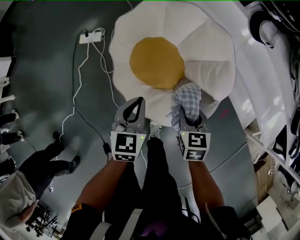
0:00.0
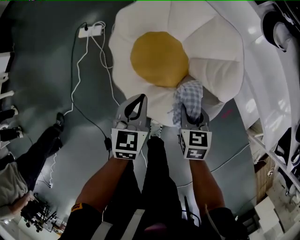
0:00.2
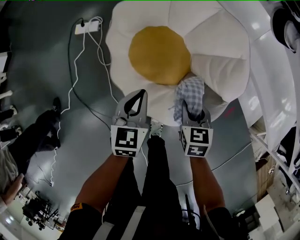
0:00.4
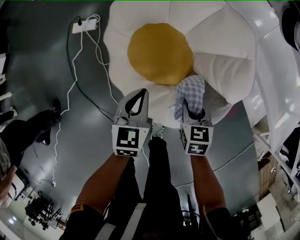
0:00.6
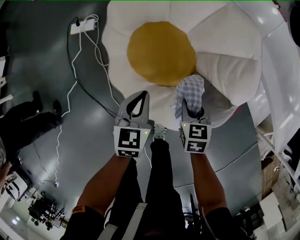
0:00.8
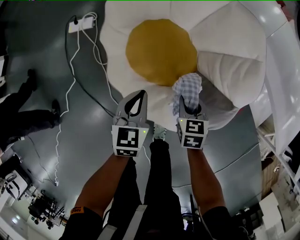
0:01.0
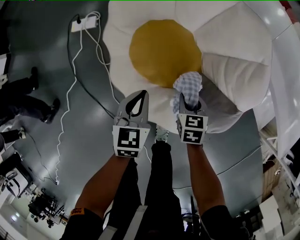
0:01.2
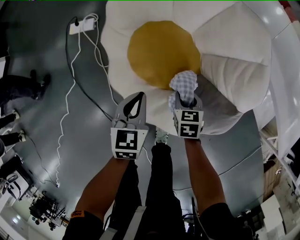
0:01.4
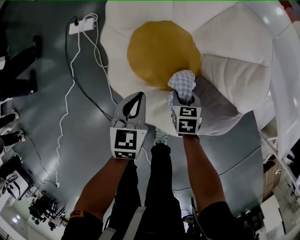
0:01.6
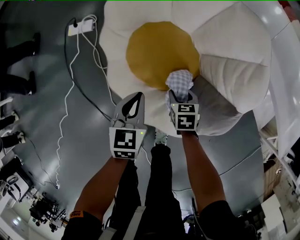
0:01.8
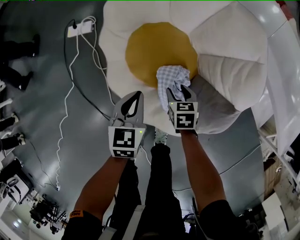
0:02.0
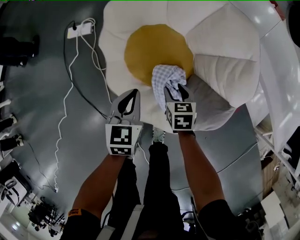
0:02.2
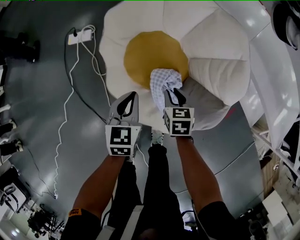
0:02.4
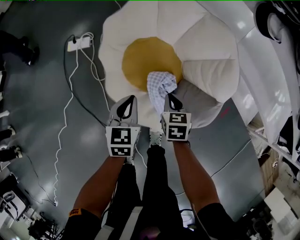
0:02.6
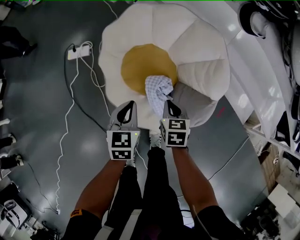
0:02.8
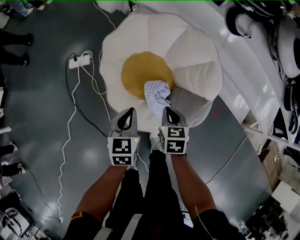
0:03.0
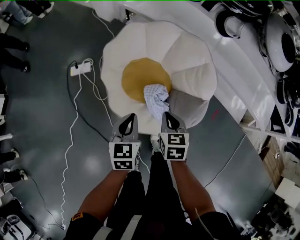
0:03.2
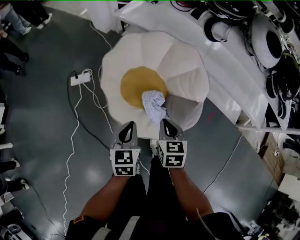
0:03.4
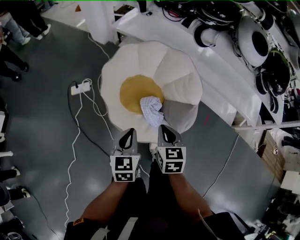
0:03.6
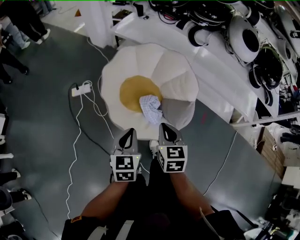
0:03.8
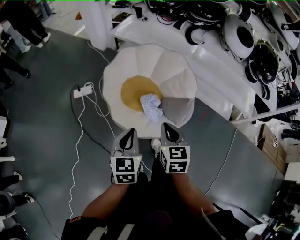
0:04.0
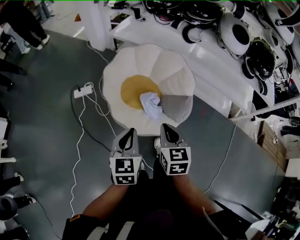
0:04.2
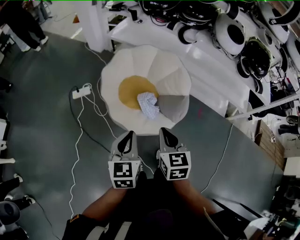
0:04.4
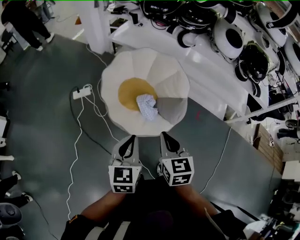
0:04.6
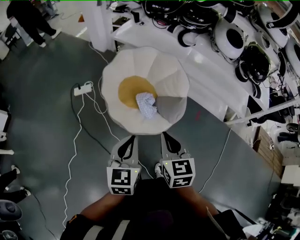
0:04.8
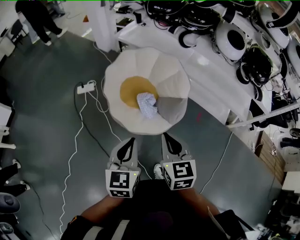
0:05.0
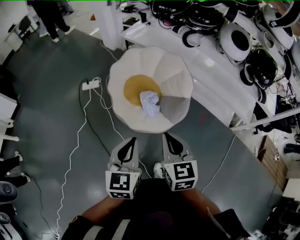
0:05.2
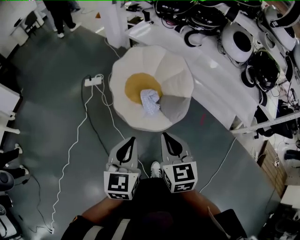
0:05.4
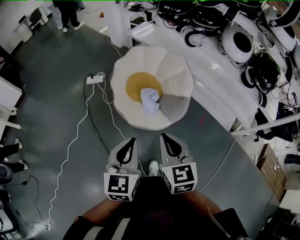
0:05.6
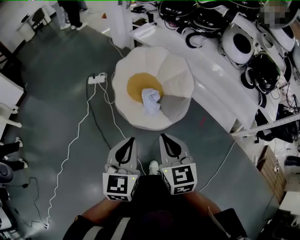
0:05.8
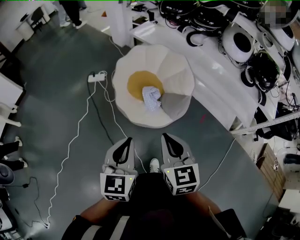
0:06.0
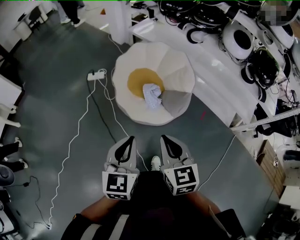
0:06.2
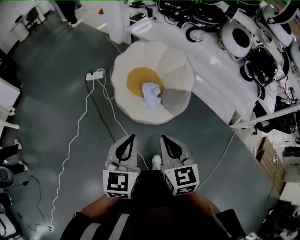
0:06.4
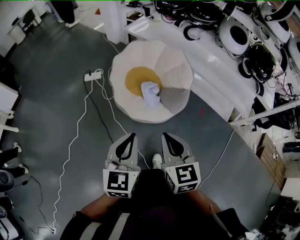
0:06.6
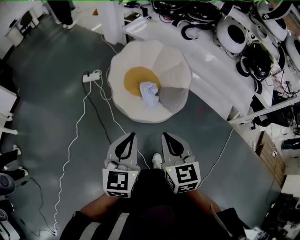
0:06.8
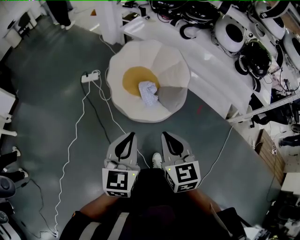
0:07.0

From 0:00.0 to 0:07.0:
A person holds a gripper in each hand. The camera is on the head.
From 0:00.0 to 0:01.4: Both grippers travel together downward, approximately 25 cm.
From 0:01.4 to 0:02.8: The grippers both shift upward by approximately 15 cm. The right gripper closes up.
From 0:02.8 to 0:04.2: The two grippers go approximately 35 cm upward and backward. The right gripper rotates some 20 degrees.
From 0:04.2 to 0:05.6: The left gripper moves backward, to the right and upward, approximately 25 cm, while the right gripper is displaced backward, upward and to the right by roughly 20 cm, and rotates about 20 degrees.
From 0:05.6 to 0:07.0: The left gripper is displaced to the left by about 5 cm, while the right gripper is displaced to the left and backward by approximately 5 cm.

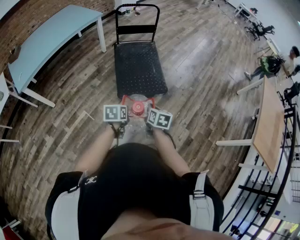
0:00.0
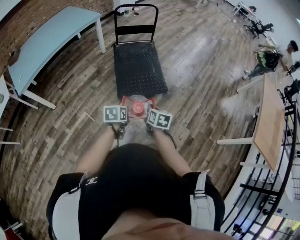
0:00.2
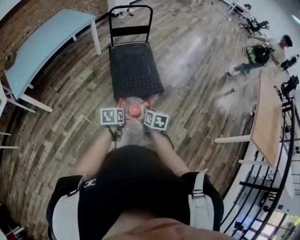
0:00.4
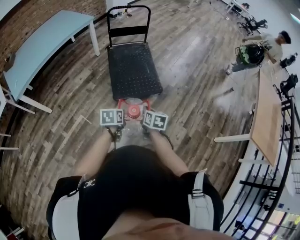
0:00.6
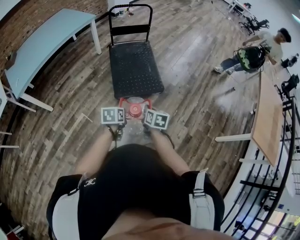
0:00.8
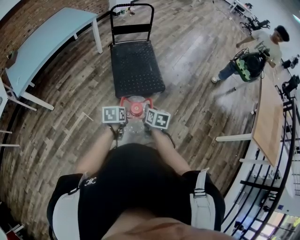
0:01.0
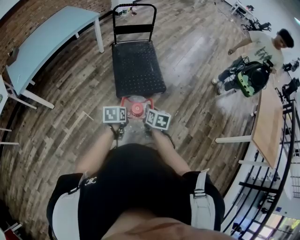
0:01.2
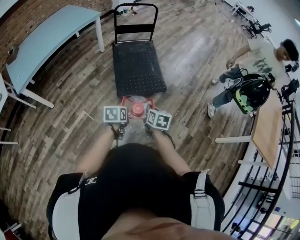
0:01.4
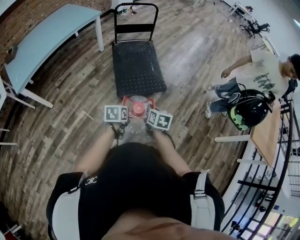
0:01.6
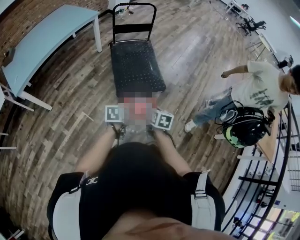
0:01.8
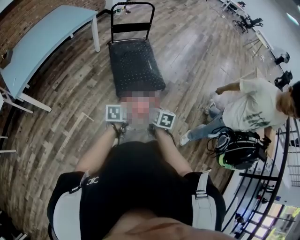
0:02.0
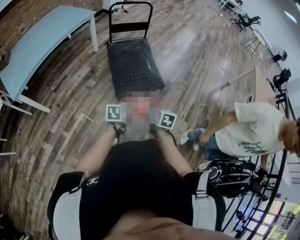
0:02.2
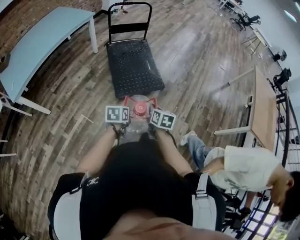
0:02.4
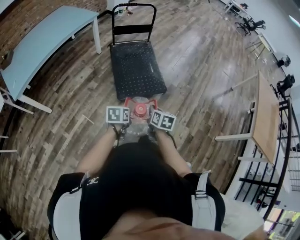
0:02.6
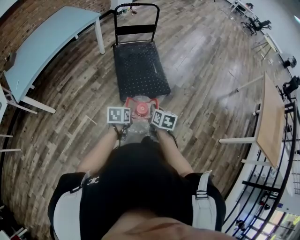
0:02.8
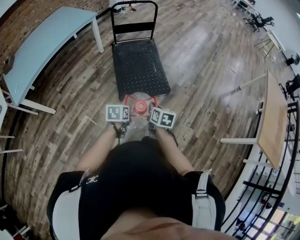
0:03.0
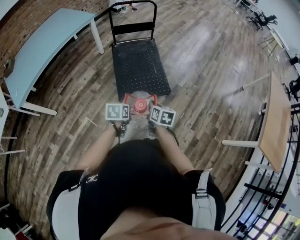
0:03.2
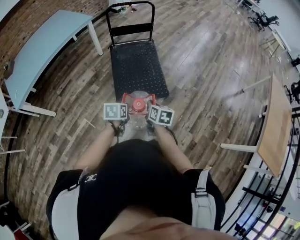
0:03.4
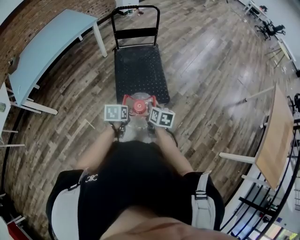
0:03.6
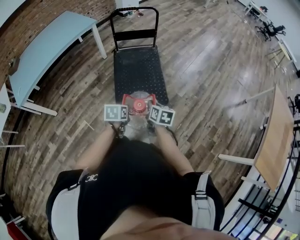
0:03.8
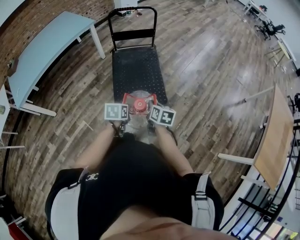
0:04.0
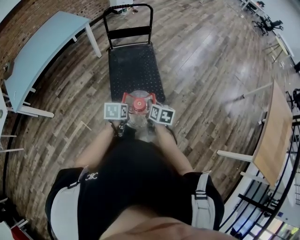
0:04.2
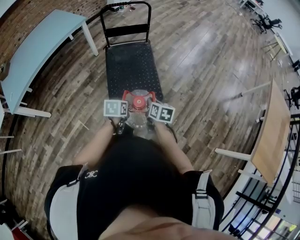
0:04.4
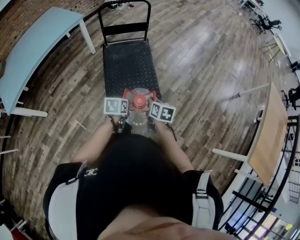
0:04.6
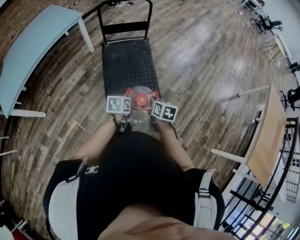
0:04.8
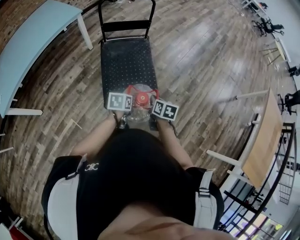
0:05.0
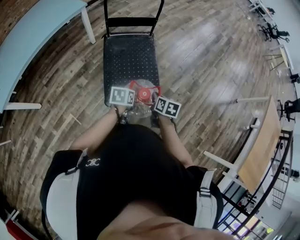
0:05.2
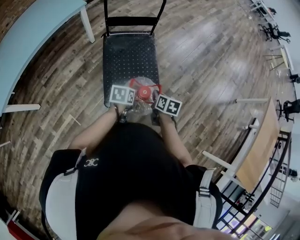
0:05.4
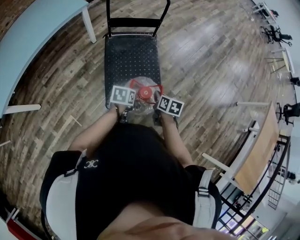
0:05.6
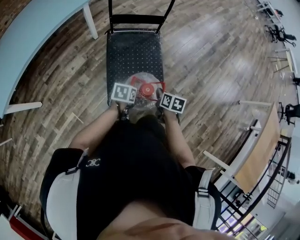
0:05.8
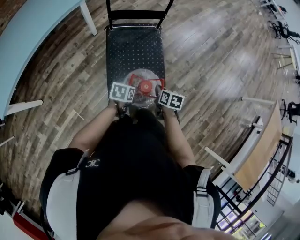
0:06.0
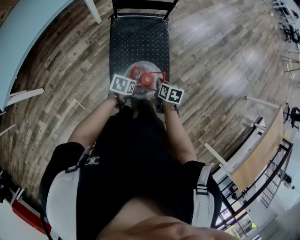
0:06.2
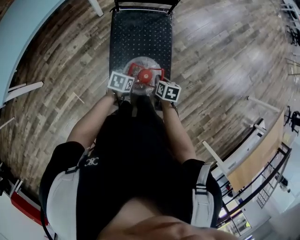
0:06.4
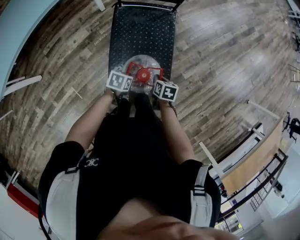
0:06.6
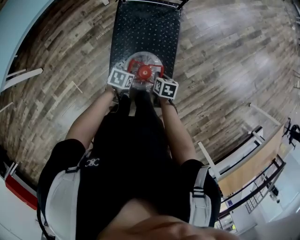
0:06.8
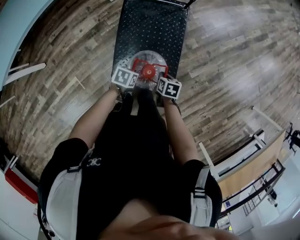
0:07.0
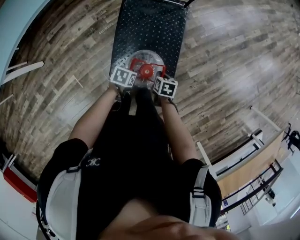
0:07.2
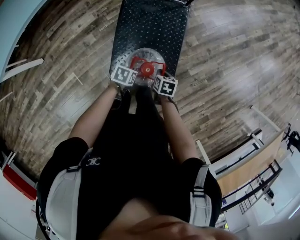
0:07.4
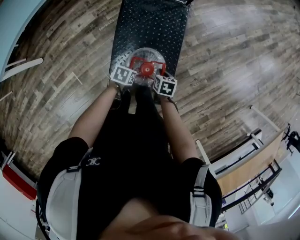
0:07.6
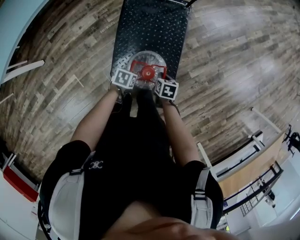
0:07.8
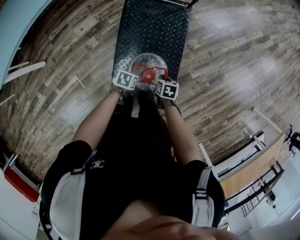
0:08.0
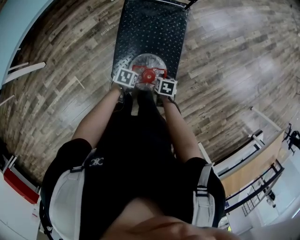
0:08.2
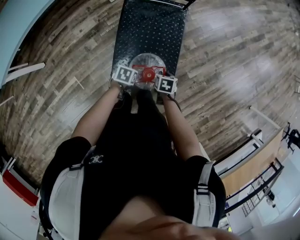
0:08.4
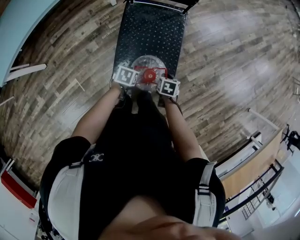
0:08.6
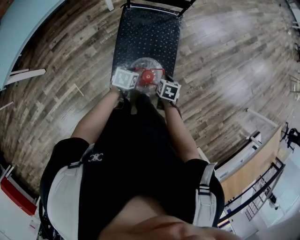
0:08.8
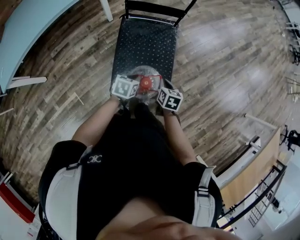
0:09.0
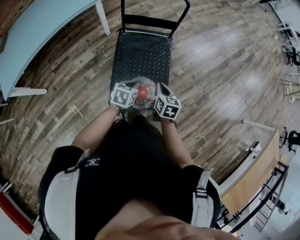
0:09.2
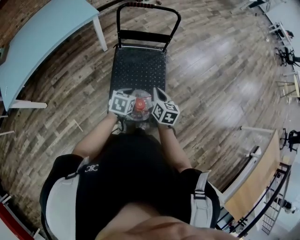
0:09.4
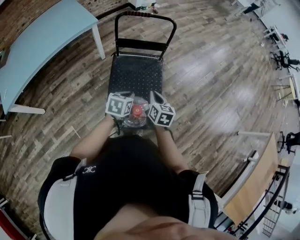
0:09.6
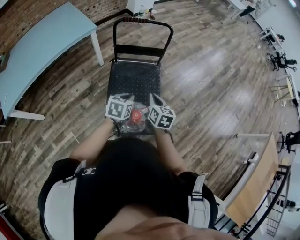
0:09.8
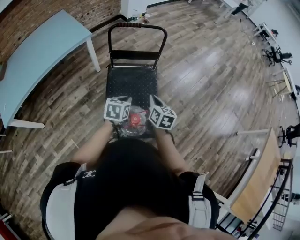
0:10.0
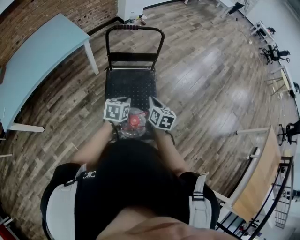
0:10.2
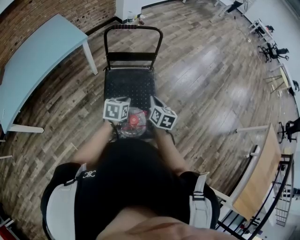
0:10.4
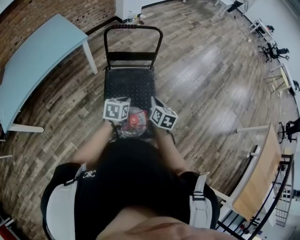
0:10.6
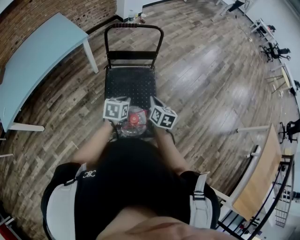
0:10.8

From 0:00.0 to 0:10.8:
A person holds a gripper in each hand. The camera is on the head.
From 0:00.0 to 0:01.6: The grippers move only a little.
From 0:01.6 to 0:03.0: Both grippers move forward, some 10 cm.
From 0:03.0 to 0:04.6: The two grippers go roughly 20 cm forward and to the right.
From 0:04.6 to 0:06.2: The right gripper shifts approximately 20 cm forward and downward, while the left gripper moves forward, downward and to the left, about 20 cm.
From 0:06.2 to 0:07.8: The grippers both shift downward by approximately 10 cm.
From 0:07.8 to 0:09.2: The grippers both shift upward by approximately 20 cm. The left gripper rotates some 30 degrees, and opens, then closes again. Meanwhile the right gripper turns by some 30 degrees.
From 0:09.2 to 0:10.8: Both grippers travel together upward, about 10 cm.

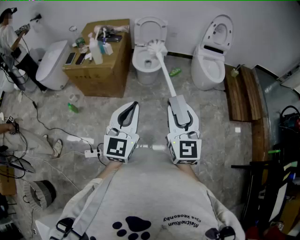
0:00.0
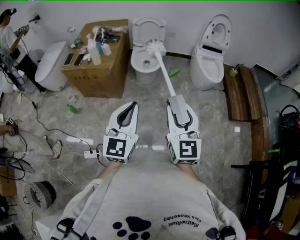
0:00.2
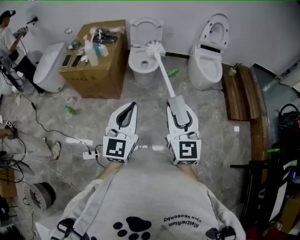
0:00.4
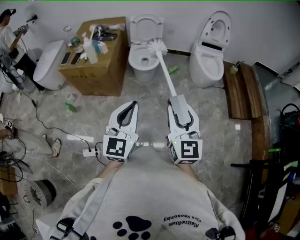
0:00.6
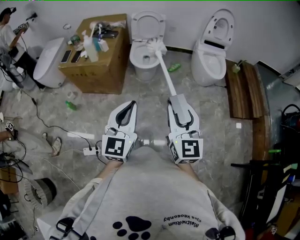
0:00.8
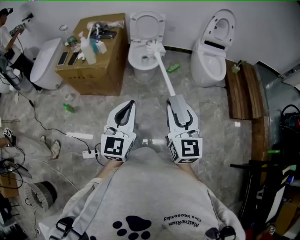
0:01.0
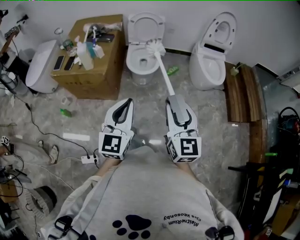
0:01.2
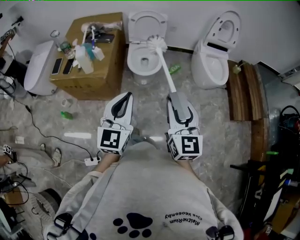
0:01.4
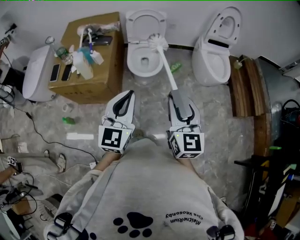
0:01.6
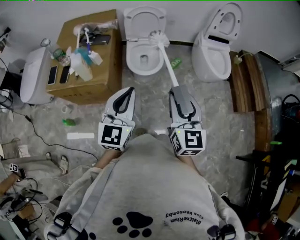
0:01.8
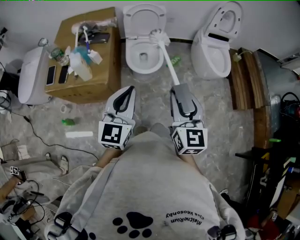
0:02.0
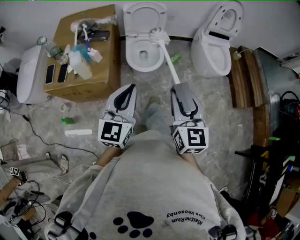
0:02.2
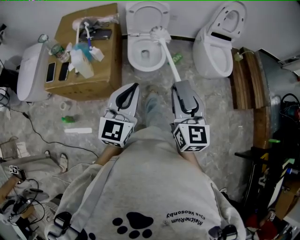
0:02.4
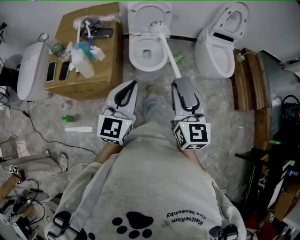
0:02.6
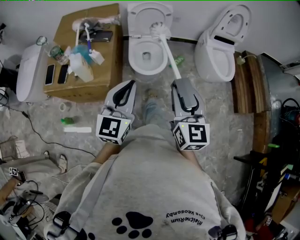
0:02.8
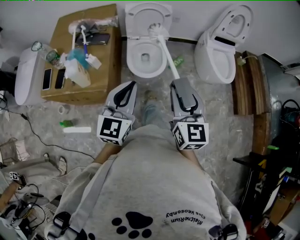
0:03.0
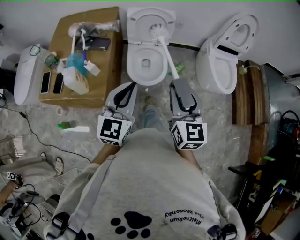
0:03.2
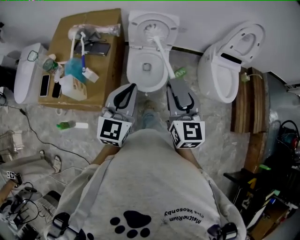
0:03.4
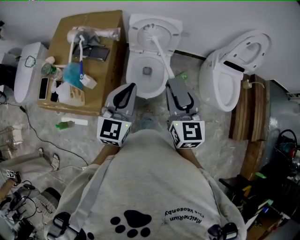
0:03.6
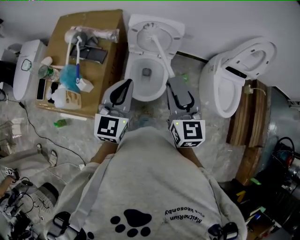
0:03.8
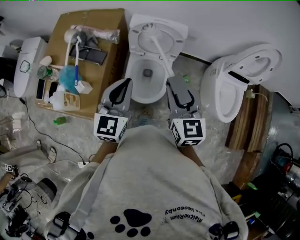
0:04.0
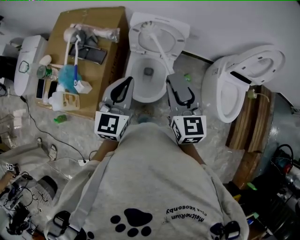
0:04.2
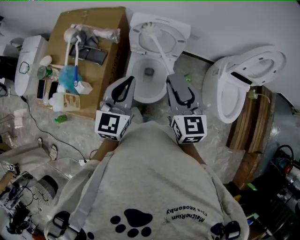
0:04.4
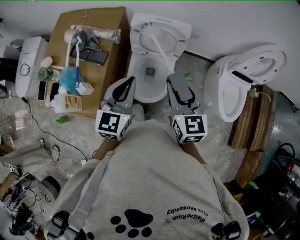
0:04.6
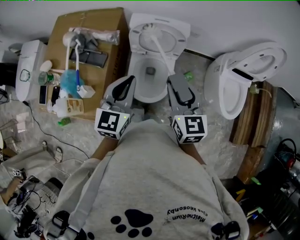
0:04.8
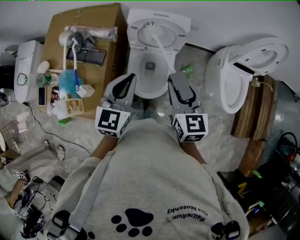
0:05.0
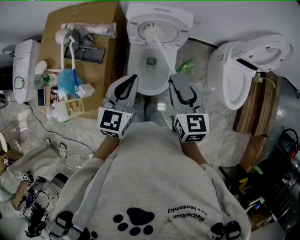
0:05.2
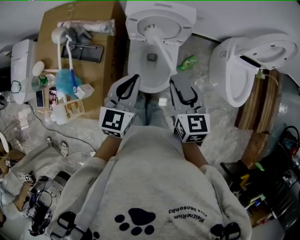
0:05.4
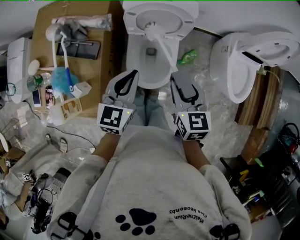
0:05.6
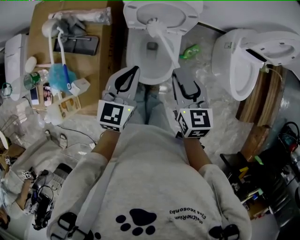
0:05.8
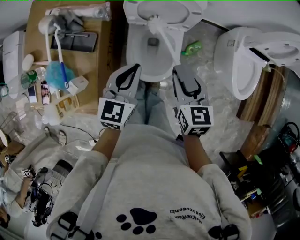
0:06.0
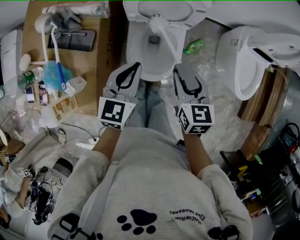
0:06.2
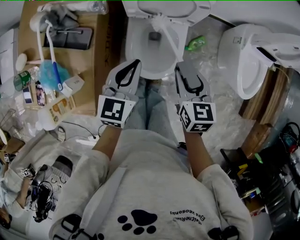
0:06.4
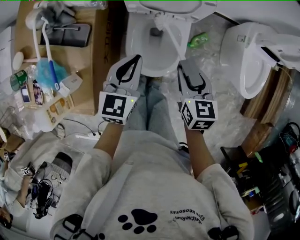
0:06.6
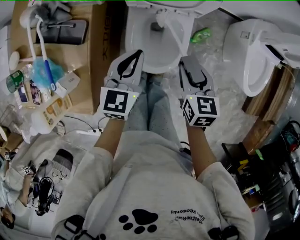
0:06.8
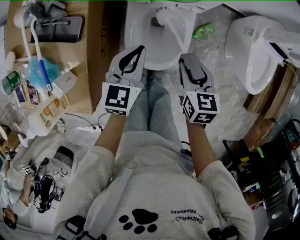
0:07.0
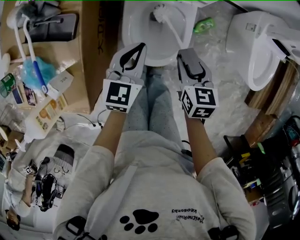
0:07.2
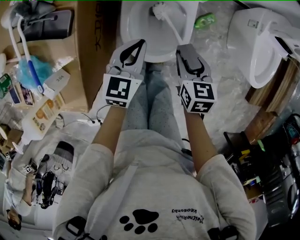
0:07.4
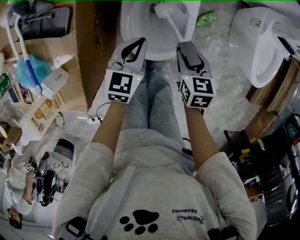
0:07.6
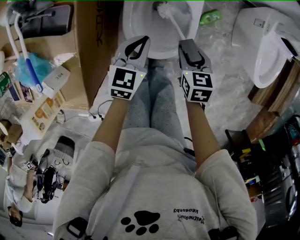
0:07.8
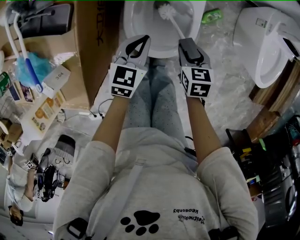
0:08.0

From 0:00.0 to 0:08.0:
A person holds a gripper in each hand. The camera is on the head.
From 0:00.0 to 0:01.6: The two grippers go roughly 25 cm forward.
From 0:01.6 to 0:03.2: Both grippers travel together forward, about 20 cm.
From 0:03.2 to 0:04.8: The grippers both shift forward by some 25 cm.
From 0:04.8 to 0:06.4: Both grippers move downward, some 20 cm. The right gripper swivels roughly 20 degrees.
From 0:06.4 to 0:08.0: The grippers both shift downward by approximately 20 cm.
